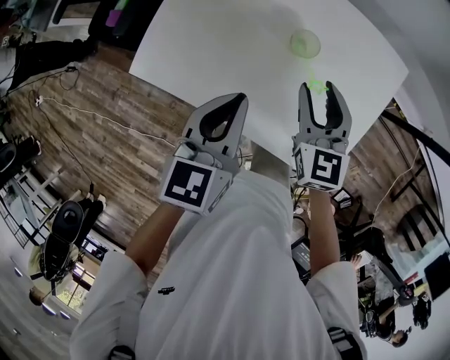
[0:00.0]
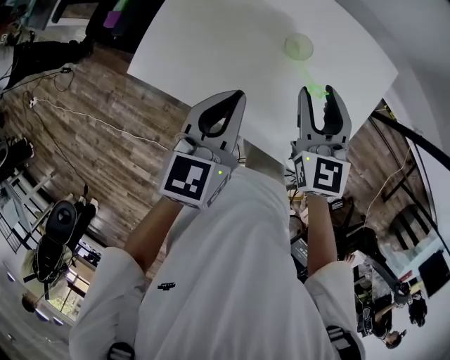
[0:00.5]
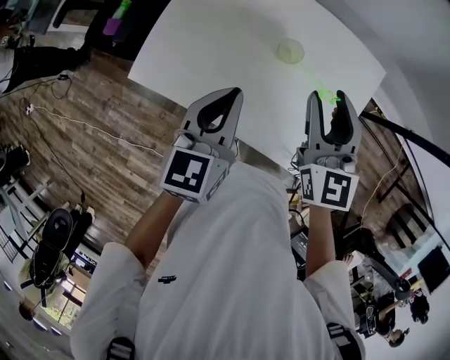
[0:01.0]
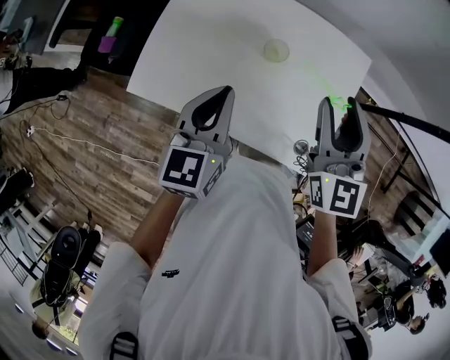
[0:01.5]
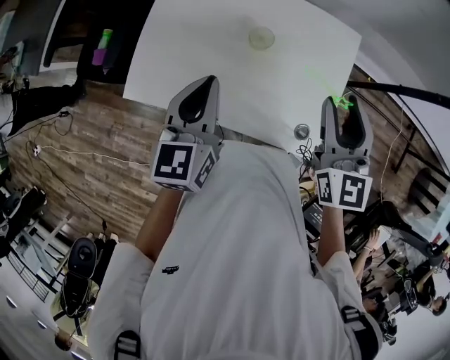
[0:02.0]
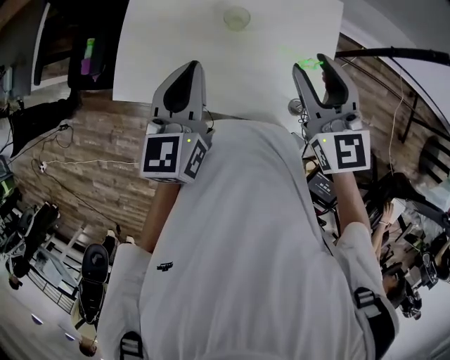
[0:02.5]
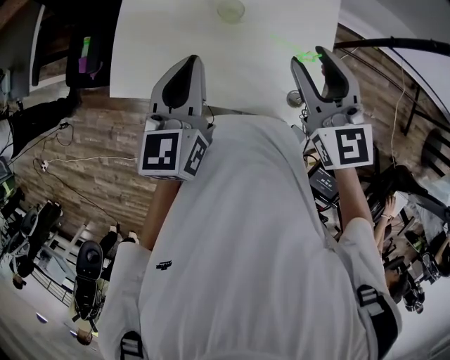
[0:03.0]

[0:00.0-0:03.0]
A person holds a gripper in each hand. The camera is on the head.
0:00.0 to 0:01.5: The left gripper travels upward by some 5 cm; the right gripper is displaced upward by roughly 15 cm.
0:01.5 to 0:03.0: The right gripper shifts by approximately 5 cm; the left gripper moves about 5 cm.

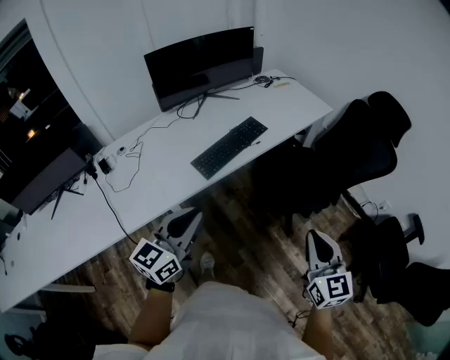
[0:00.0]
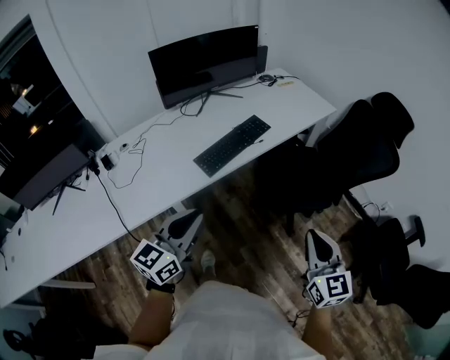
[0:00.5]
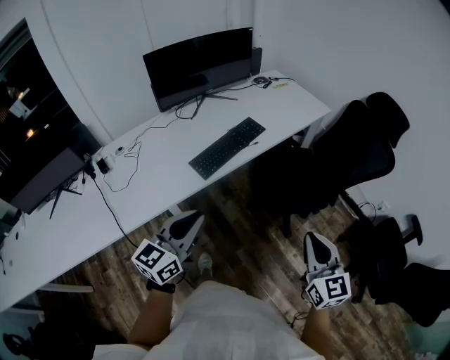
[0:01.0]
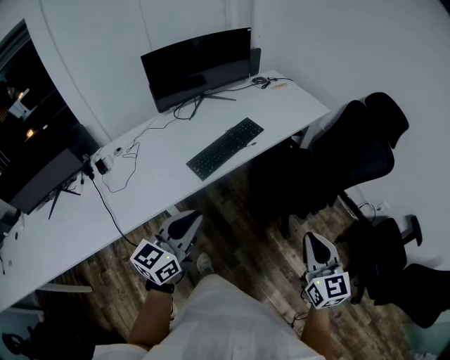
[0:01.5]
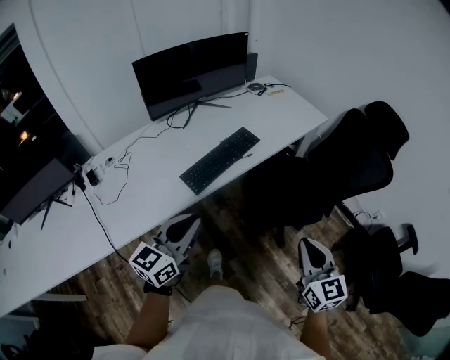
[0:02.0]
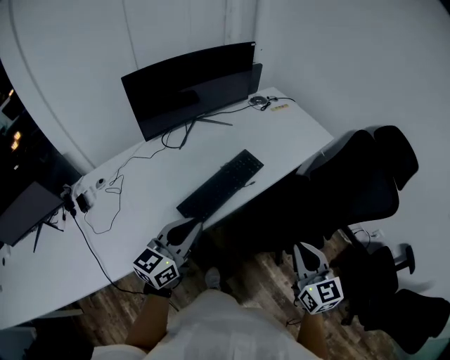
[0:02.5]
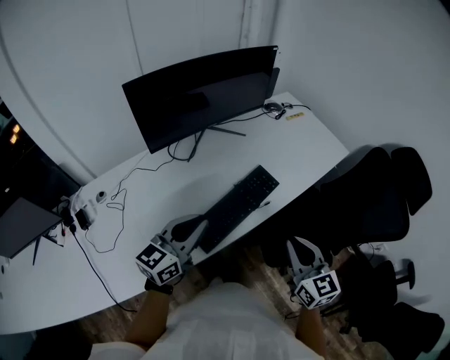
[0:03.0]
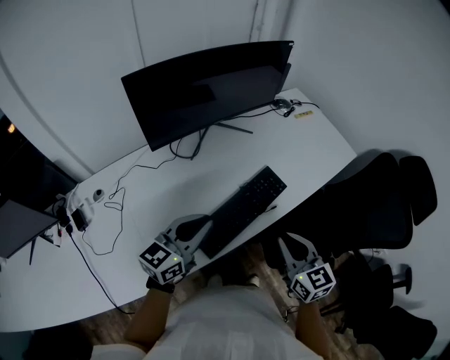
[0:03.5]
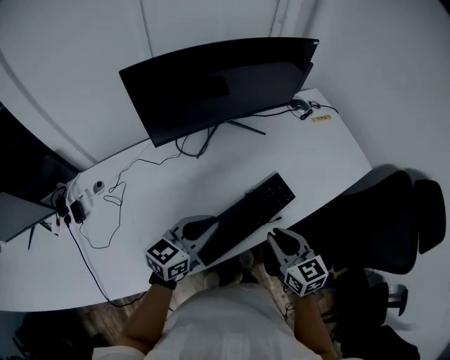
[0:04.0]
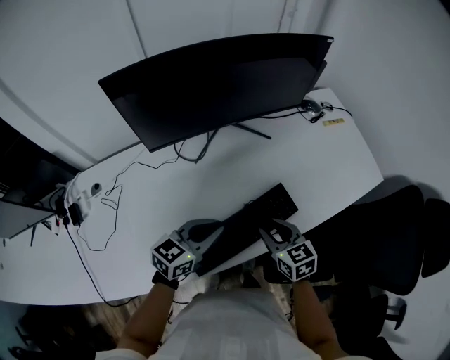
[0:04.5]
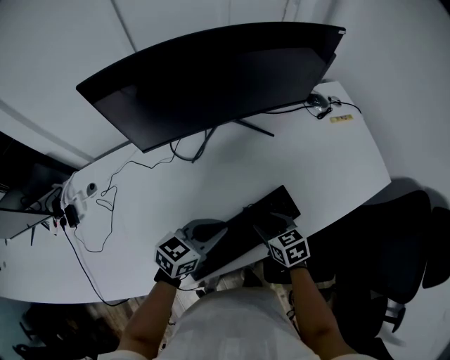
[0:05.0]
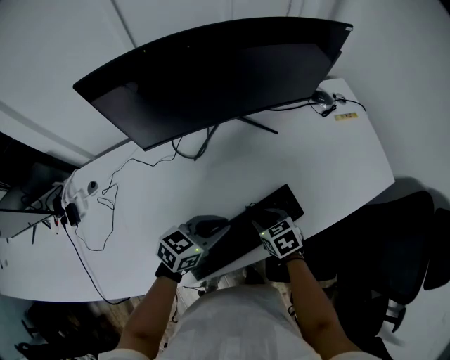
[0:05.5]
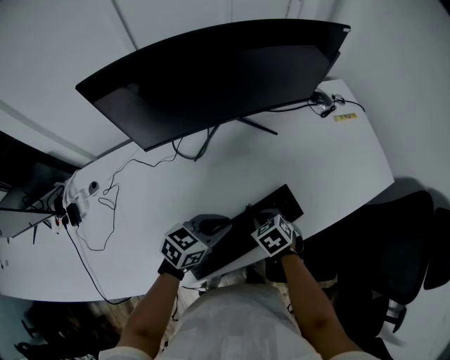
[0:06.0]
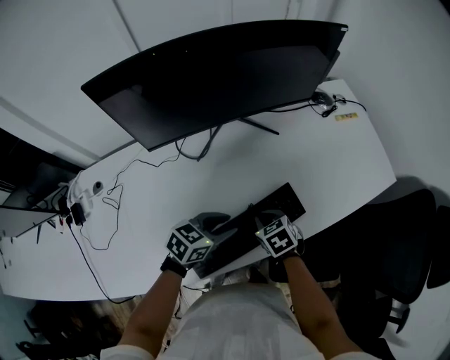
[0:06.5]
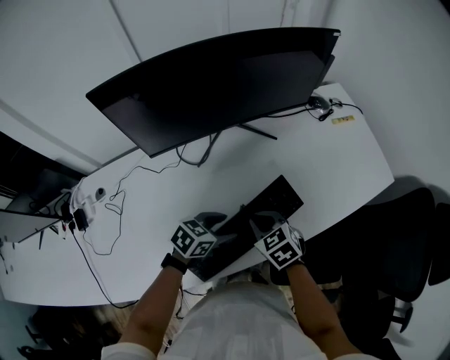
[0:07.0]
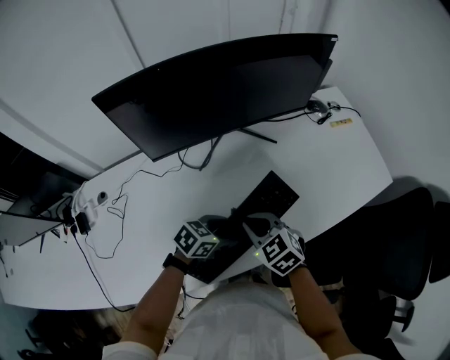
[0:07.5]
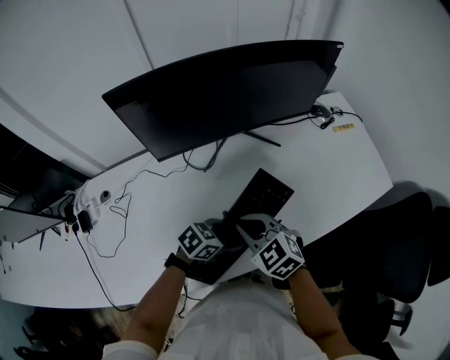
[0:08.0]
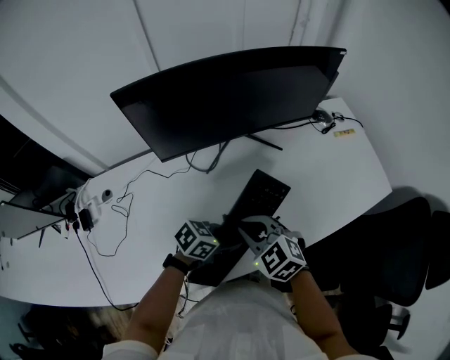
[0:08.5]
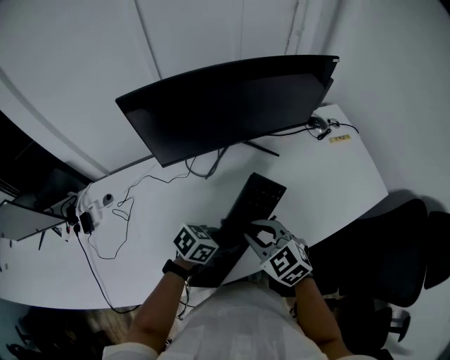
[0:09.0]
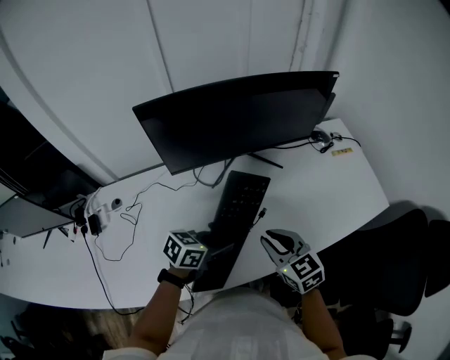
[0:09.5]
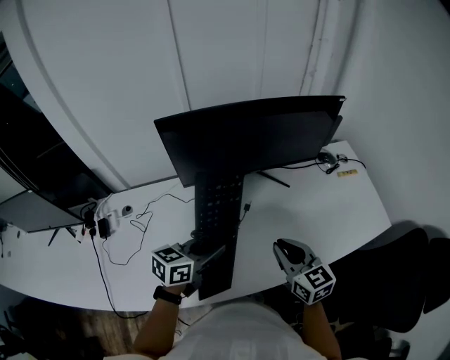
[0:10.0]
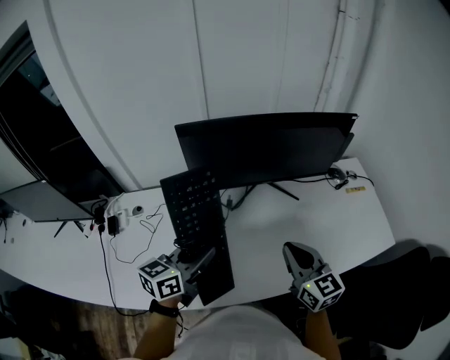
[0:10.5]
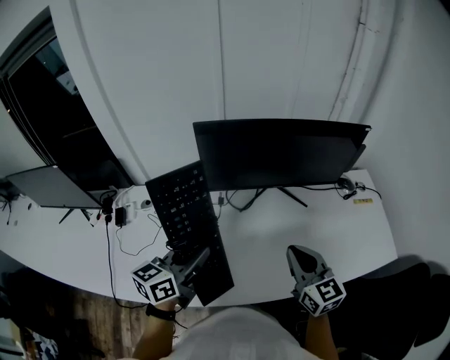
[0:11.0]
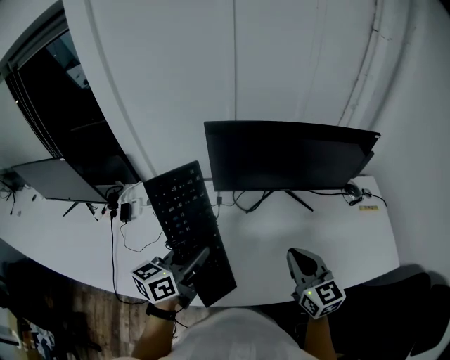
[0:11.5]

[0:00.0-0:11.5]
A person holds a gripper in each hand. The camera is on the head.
0:00.0 to 0:02.0: The two grippers go some 5 cm forward.
0:02.0 to 0:04.0: The right gripper is displaced forward and to the left by some 40 cm, and turns by roughly 30 degrees. The left gripper goes some 35 cm forward.
0:04.0 to 0:06.0: The right gripper goes roughly 20 cm downward and forward, tilts its fingers about 40 degrees downward, and opens, then closes again. The left gripper goes roughly 15 cm downward, forward and to the right, and swivels some 20 degrees.
0:06.0 to 0:07.5: The right gripper is displaced upward and to the left by approximately 15 cm, and changes its angle by roughly 30 degrees, while the left gripper opens.
0:07.5 to 0:09.5: The two grippers go approximately 10 cm upward. The left gripper closes its fingers.
0:09.5 to 0:11.5: The left gripper is displaced to the left and upward by some 20 cm, and swivels roughly 50 degrees. The right gripper travels upward by approximately 10 cm.

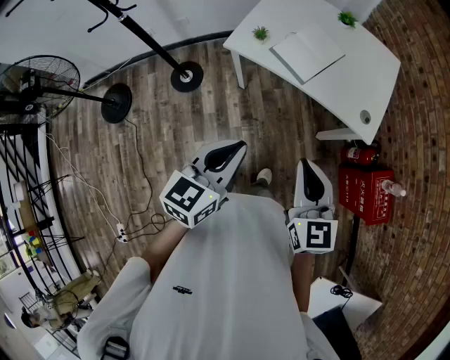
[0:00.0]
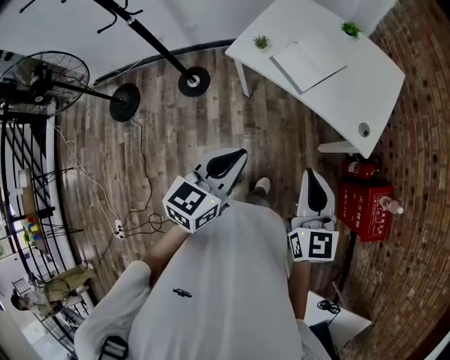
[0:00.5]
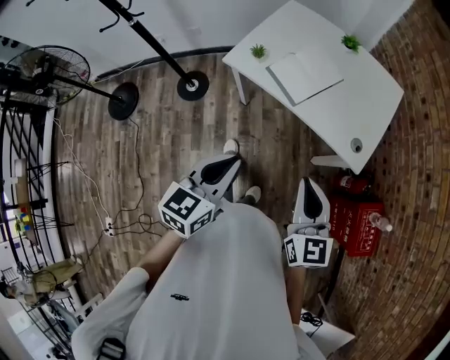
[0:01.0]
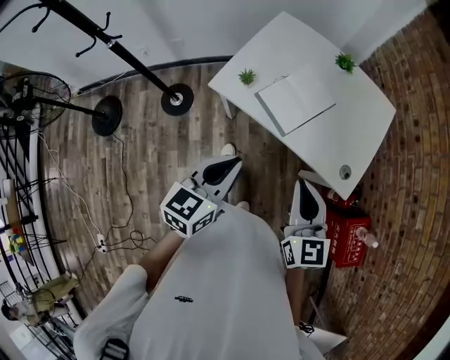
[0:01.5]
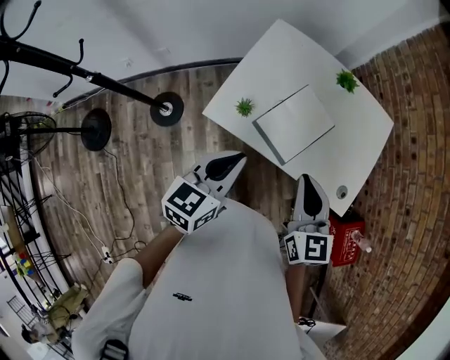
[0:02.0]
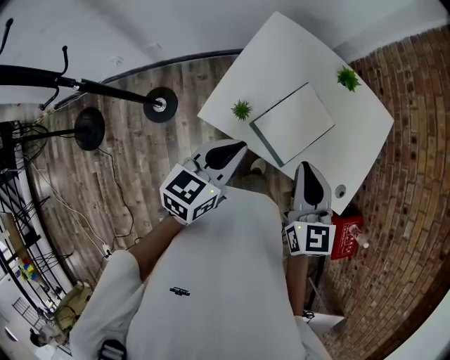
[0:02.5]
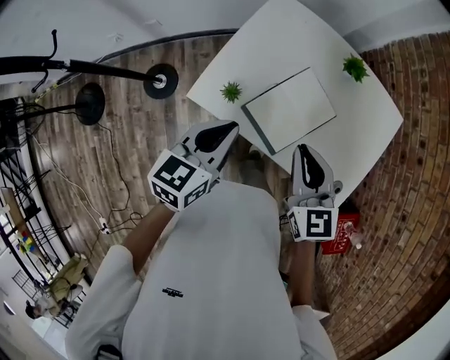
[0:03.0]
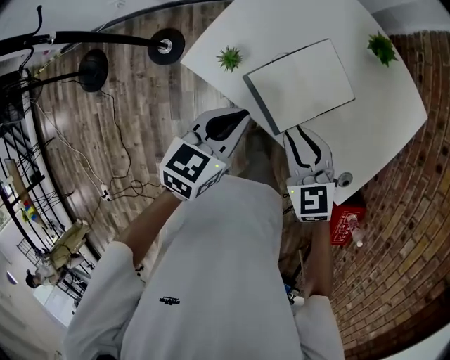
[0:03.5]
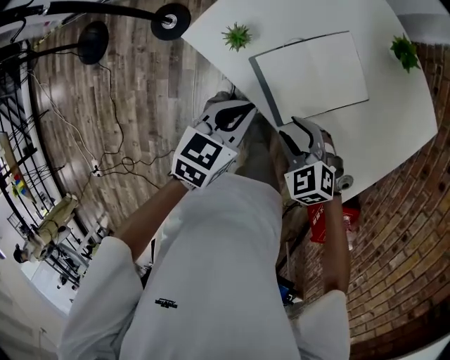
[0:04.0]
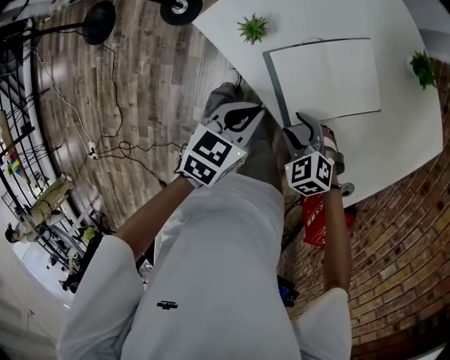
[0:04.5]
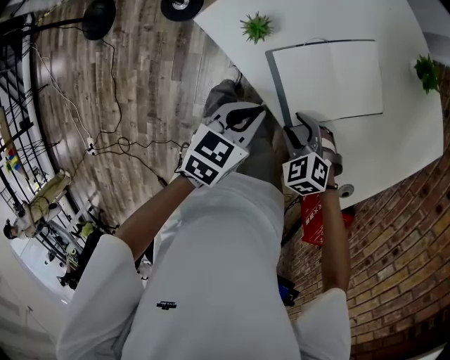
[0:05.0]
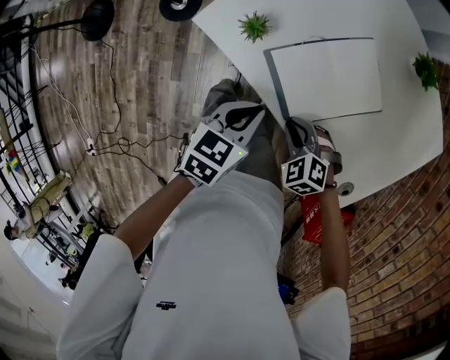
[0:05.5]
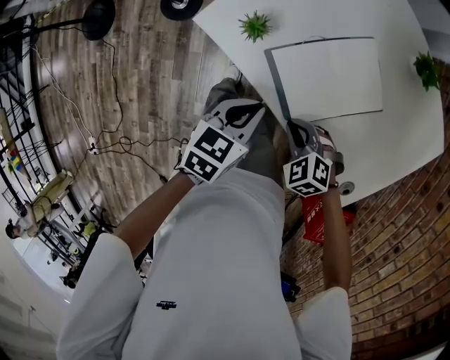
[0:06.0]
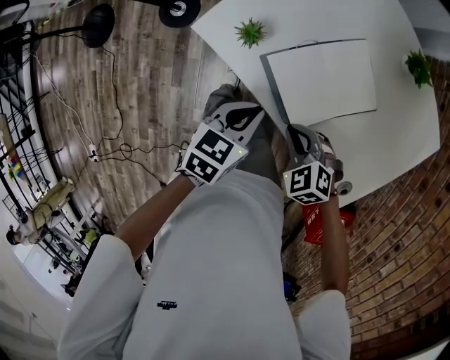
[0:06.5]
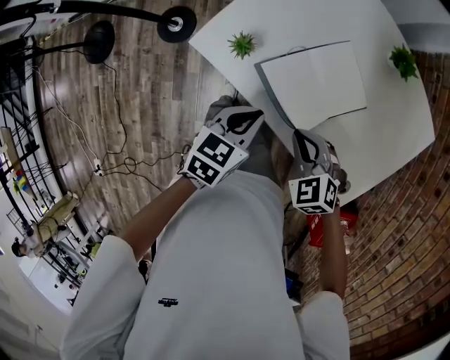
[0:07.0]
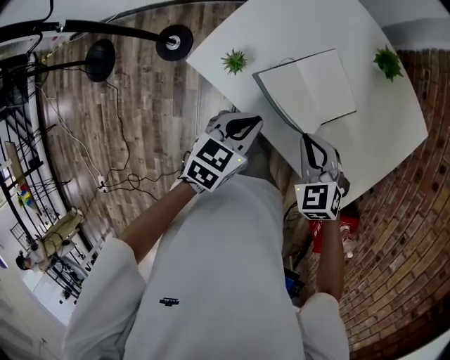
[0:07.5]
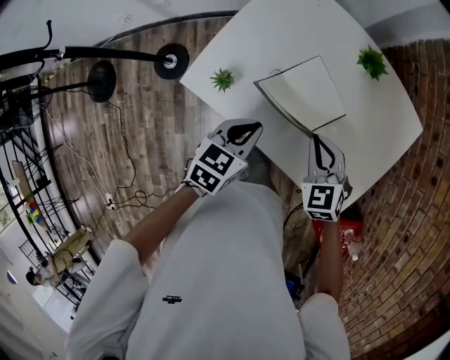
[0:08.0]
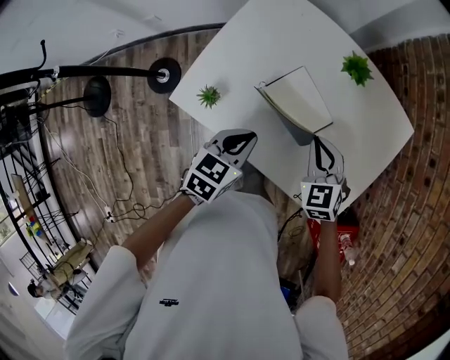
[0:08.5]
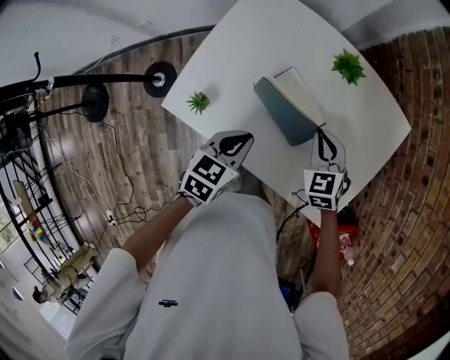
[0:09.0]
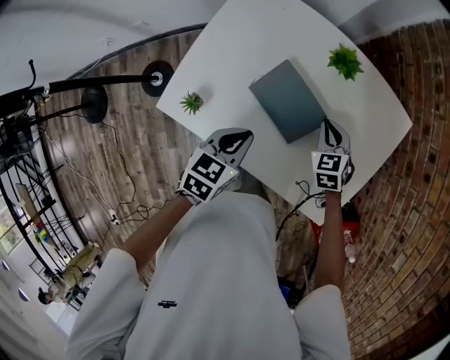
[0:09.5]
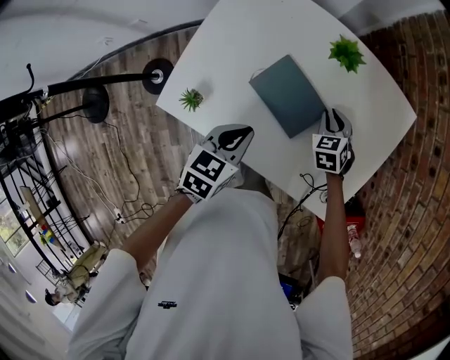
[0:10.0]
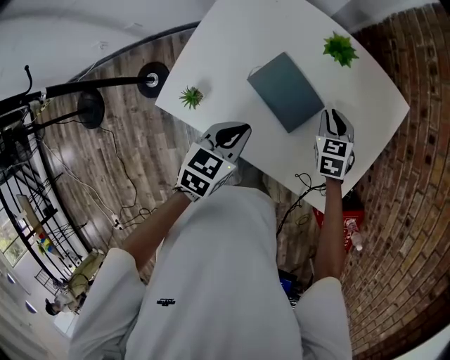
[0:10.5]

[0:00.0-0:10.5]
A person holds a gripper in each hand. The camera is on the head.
0:00.0 to 0:02.0: Both grippers travel together forward, approximately 30 cm.
0:02.0 to 0:04.0: Both grippers move downward, about 25 cm. The right gripper tips its fingers downward by approximately 30 degrees, and opens up. Meanwhile the left gripper rotates some 20 degrees.
0:04.0 to 0:06.5: The right gripper moves some 10 cm downward and comes back, and closes its fingers.
0:06.5 to 0:08.5: The right gripper shifts by some 20 cm, and changes its angle by roughly 40 degrees. The left gripper moves some 10 cm.
0:08.5 to 0:10.5: The right gripper heads forward, to the right and downward, covering roughly 15 cm, and turns by some 30 degrees.

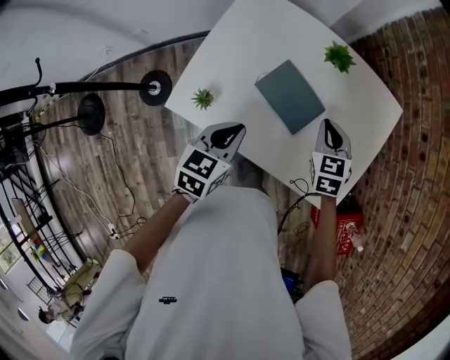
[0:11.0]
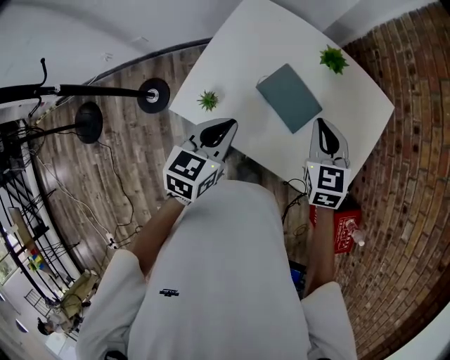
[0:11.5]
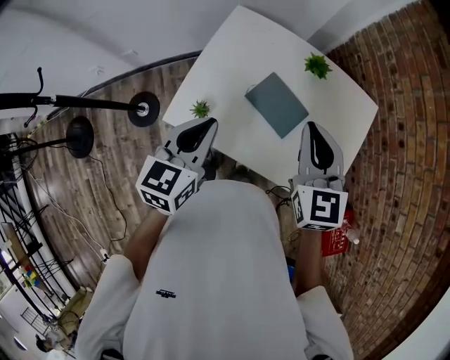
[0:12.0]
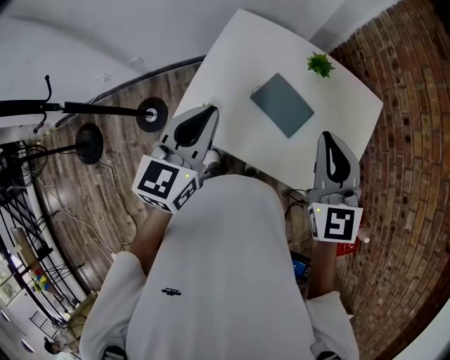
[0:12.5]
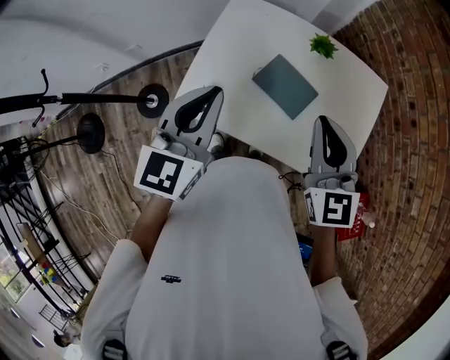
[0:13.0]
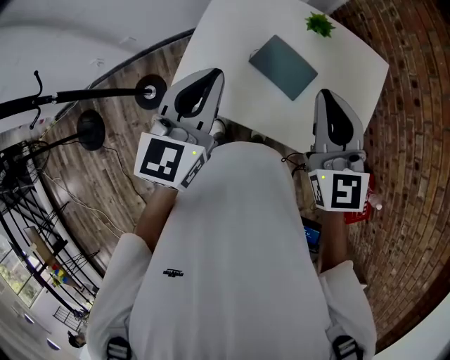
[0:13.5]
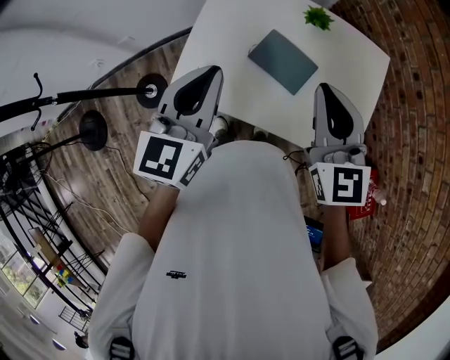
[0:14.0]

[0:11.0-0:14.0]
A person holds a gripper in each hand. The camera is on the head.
0:11.0 to 0:12.5: The left gripper moves upward and to the left, roughly 20 cm, and rotates approximately 20 degrees. The right gripper is displaced upward by approximately 25 cm, and changes its angle by some 30 degrees.
0:12.5 to 0:14.0: The grippers move only a little.
